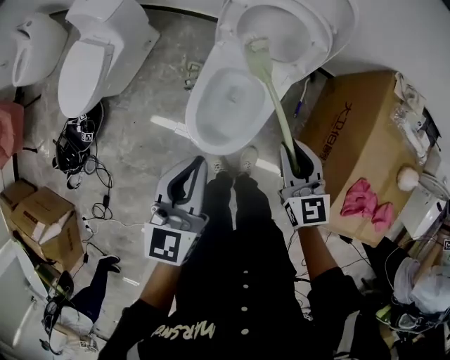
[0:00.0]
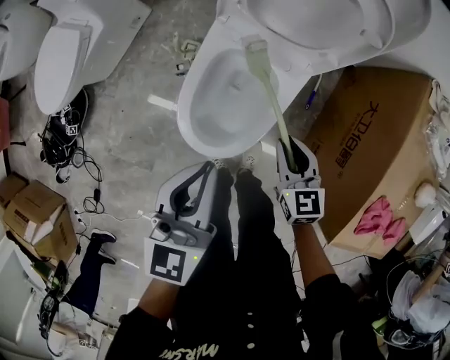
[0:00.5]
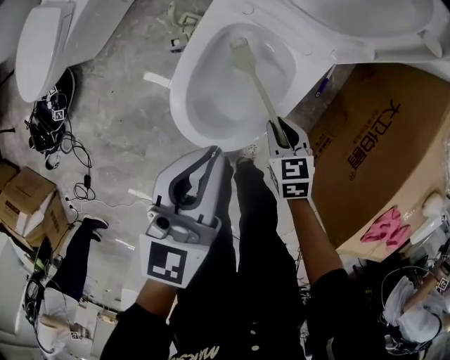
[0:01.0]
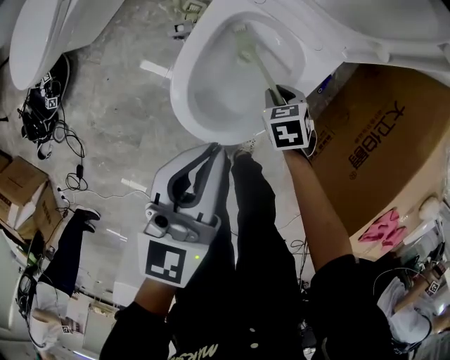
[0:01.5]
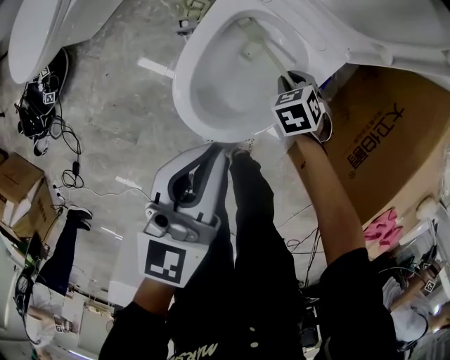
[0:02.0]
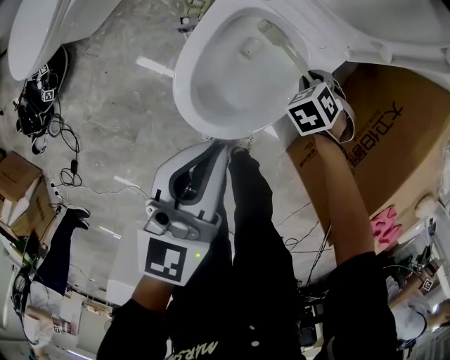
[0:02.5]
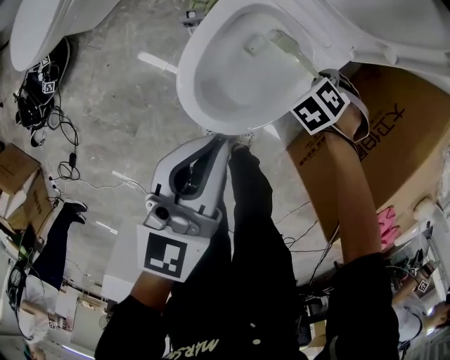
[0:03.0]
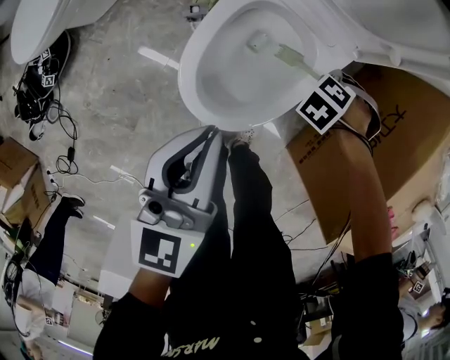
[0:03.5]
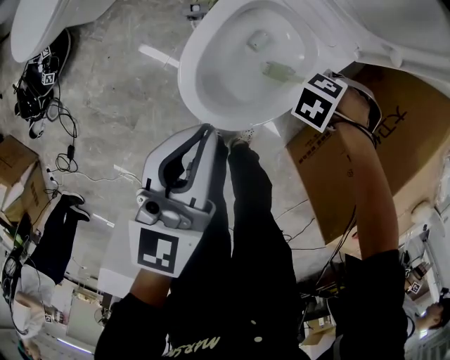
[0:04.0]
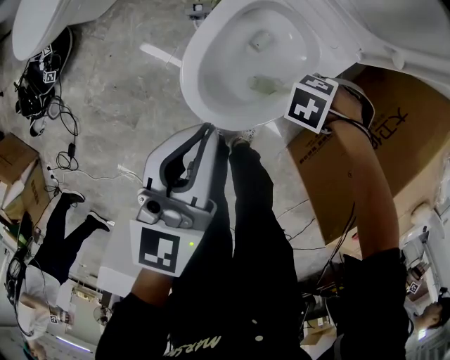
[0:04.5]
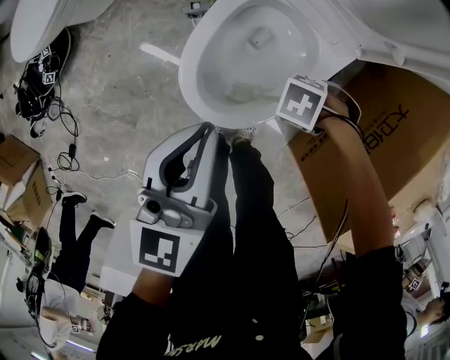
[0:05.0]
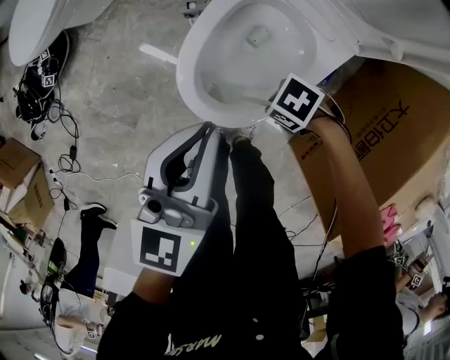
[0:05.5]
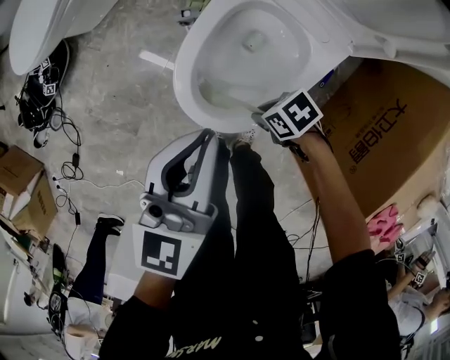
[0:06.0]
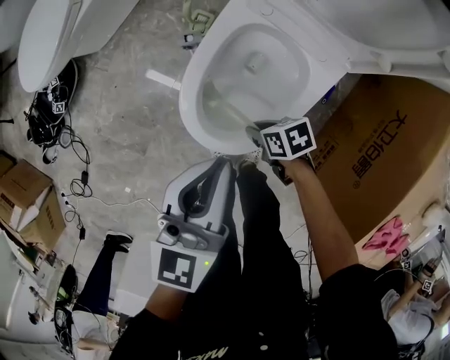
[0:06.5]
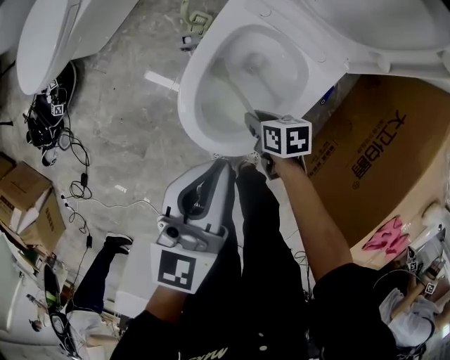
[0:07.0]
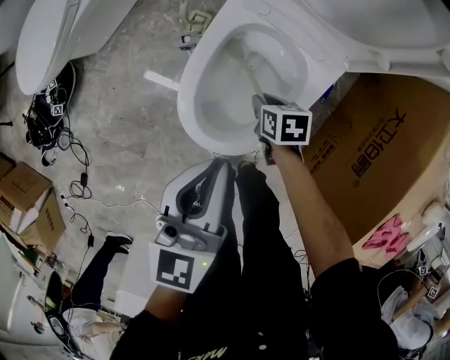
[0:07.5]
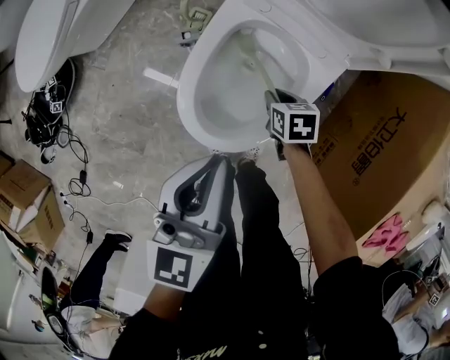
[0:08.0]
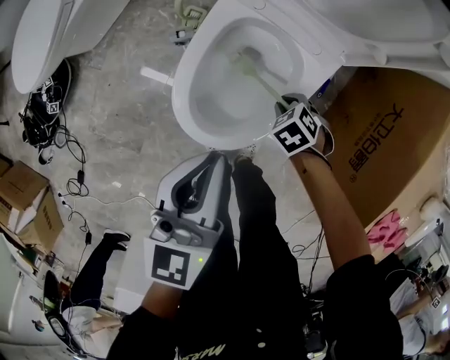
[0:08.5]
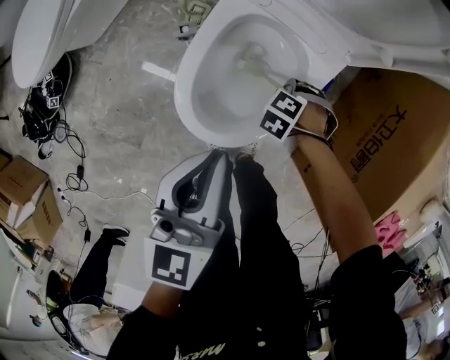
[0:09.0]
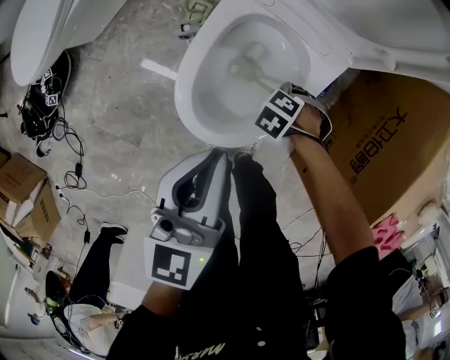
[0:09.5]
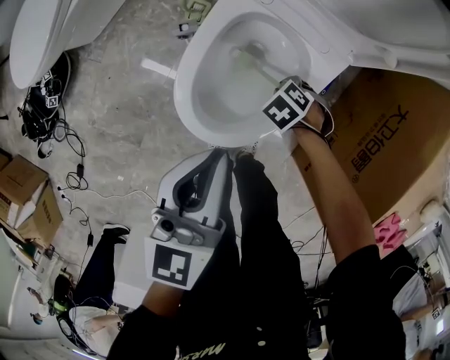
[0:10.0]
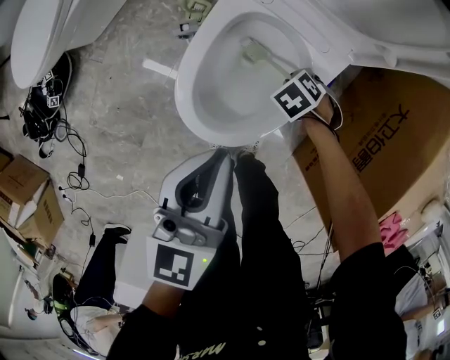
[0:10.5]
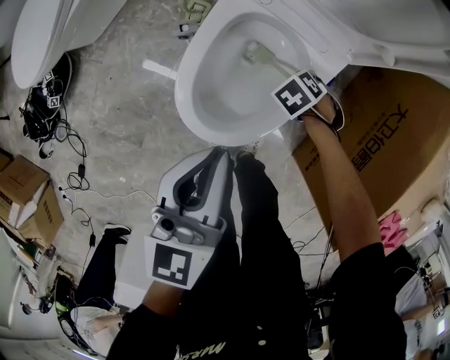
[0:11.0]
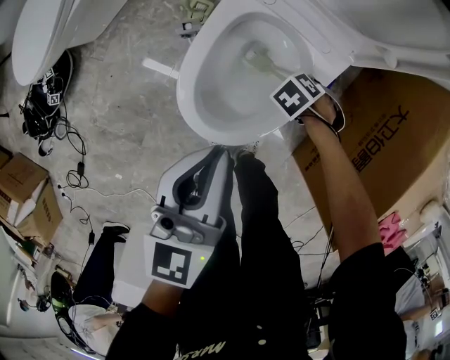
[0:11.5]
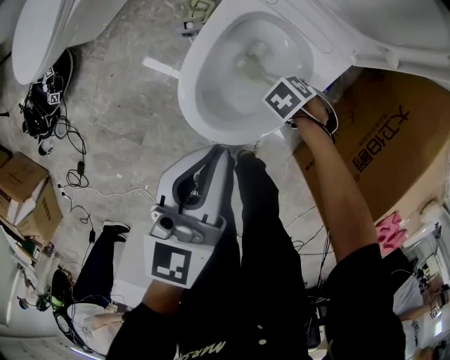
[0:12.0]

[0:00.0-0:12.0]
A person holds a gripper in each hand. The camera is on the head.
0:00.0 to 0:02.0: The left gripper goes some 25 cm downward. The right gripper heads downward, covering roughly 40 cm, and points its fingers about 50 degrees further downward.
0:02.0 to 0:04.0: The right gripper ends up about 10 cm from where it was, and rotates approximately 60 degrees.
0:04.0 to 0:06.0: The right gripper changes place by approximately 15 cm, and rotates roughly 60 degrees.
0:06.0 to 0:08.0: The right gripper shifts by about 10 cm, and swivels roughly 40 degrees.
0:08.0 to 0:10.0: The right gripper rolls counterclockwise, seen from behind, by about 50 degrees.
0:10.0 to 0:12.0: The grippers make only small movements.

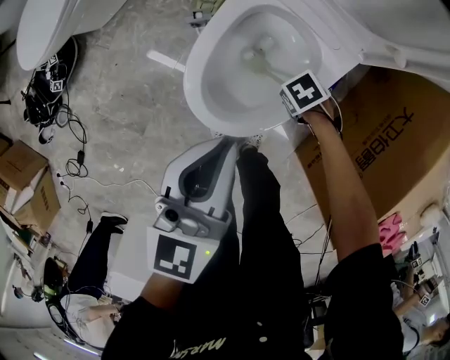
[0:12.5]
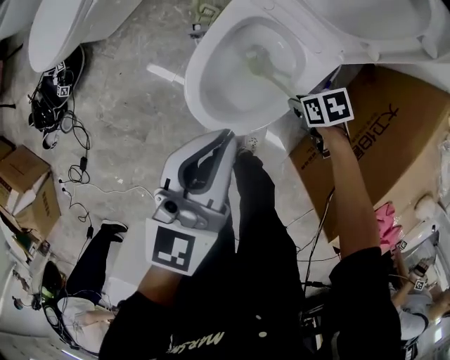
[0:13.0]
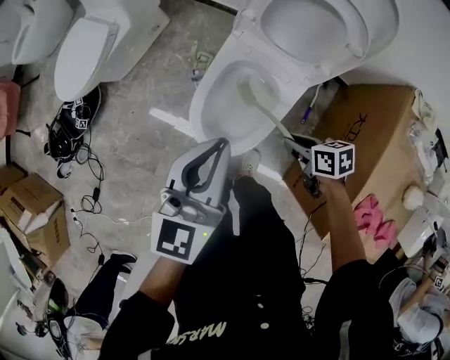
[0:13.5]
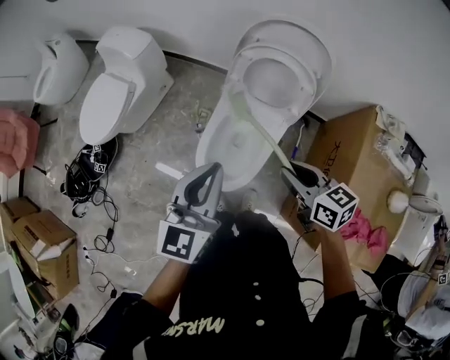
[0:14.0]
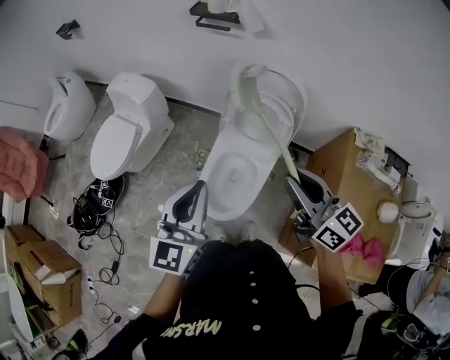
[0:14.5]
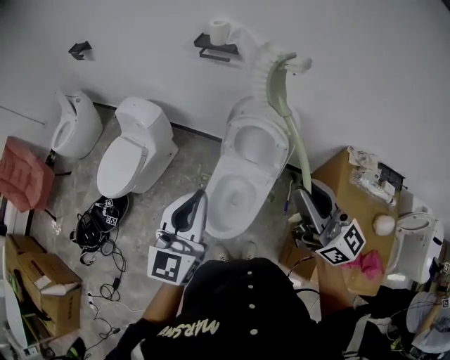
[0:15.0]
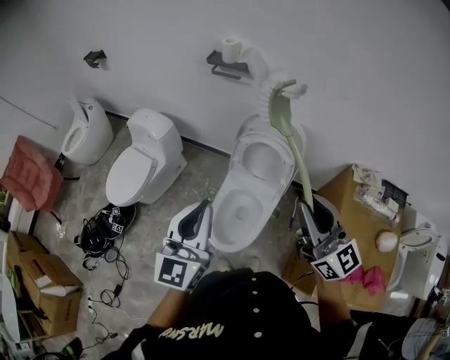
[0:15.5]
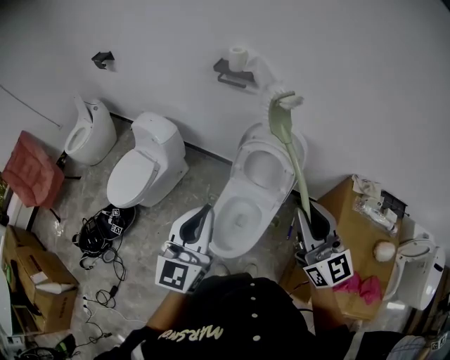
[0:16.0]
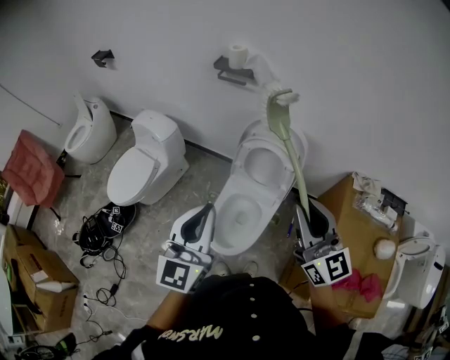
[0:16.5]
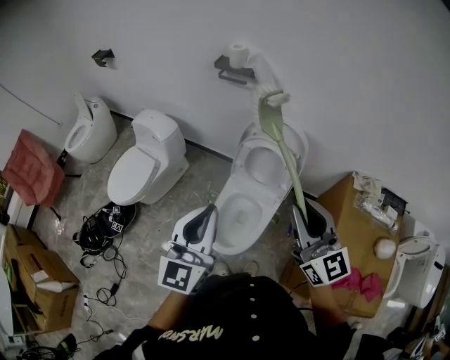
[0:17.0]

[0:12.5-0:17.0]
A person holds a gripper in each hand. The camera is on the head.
0:12.5 to 0:14.5: The left gripper moves upward, approximately 40 cm, and changes its angle by some 30 degrees, while the right gripper travels upward by about 70 cm, and points its fingers roughly 70 degrees further upward.
0:14.5 to 0:17.0: The grippers both shift upward by some 10 cm. The right gripper swivels approximately 30 degrees.

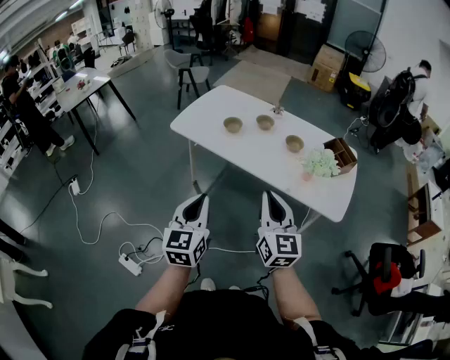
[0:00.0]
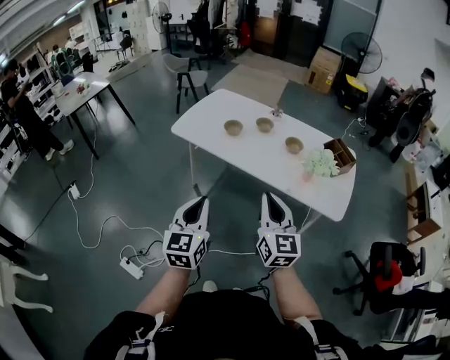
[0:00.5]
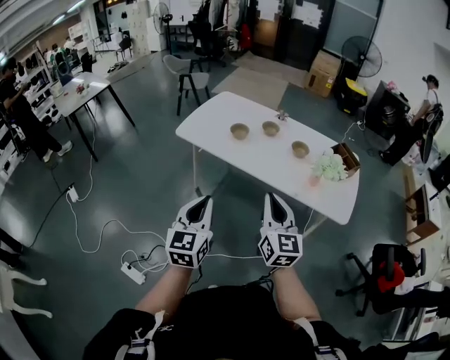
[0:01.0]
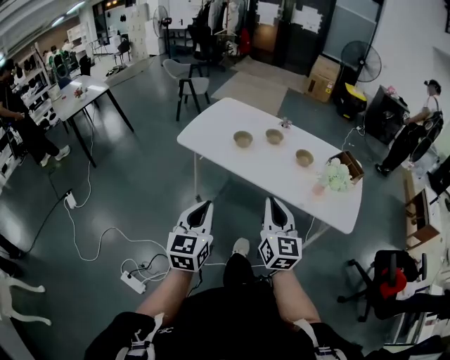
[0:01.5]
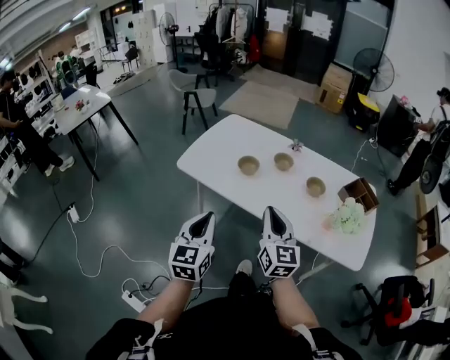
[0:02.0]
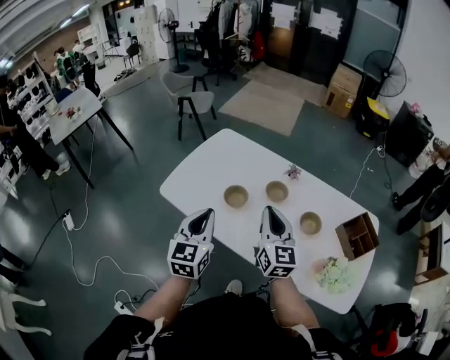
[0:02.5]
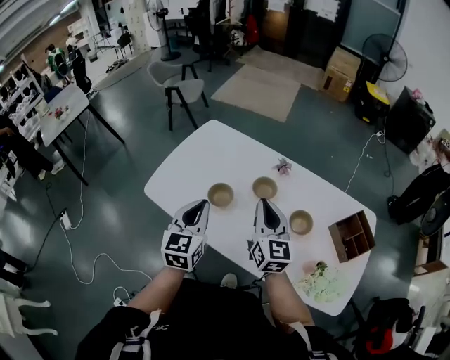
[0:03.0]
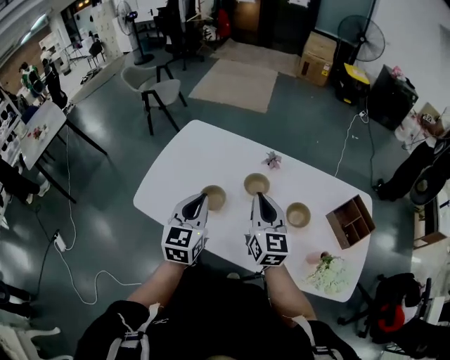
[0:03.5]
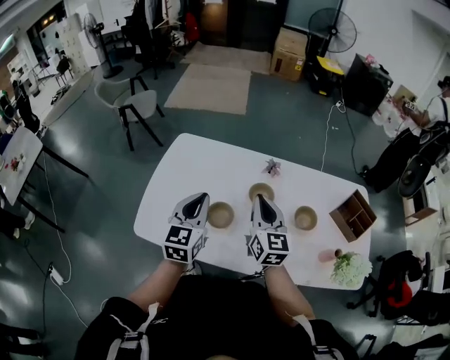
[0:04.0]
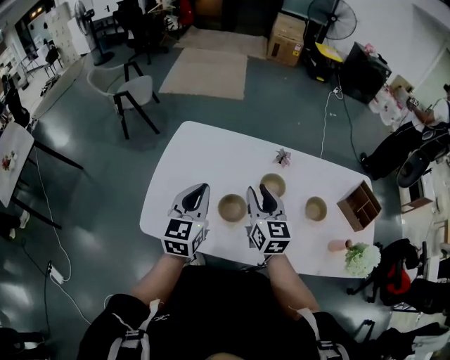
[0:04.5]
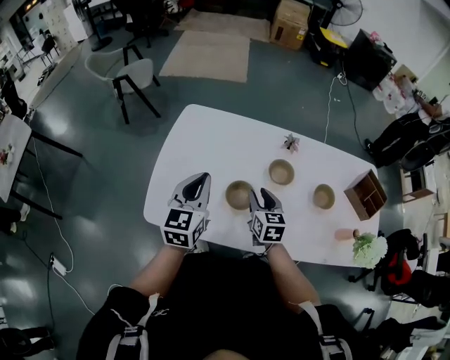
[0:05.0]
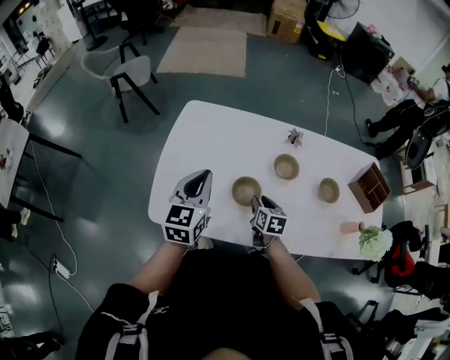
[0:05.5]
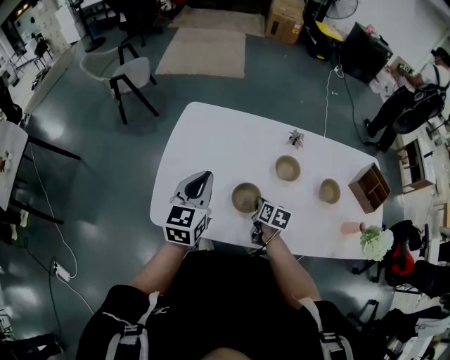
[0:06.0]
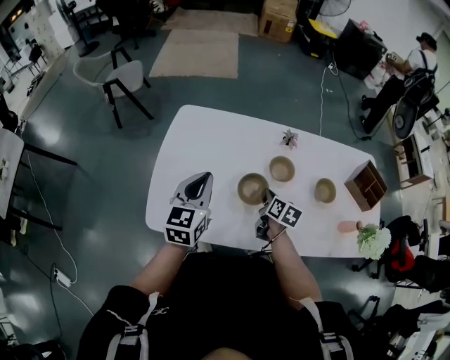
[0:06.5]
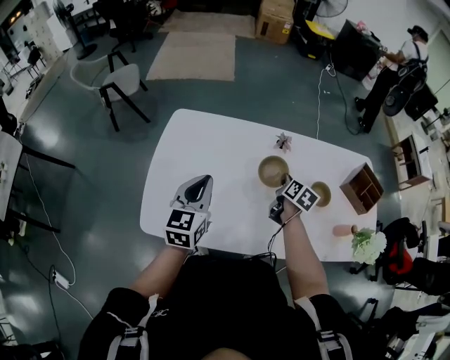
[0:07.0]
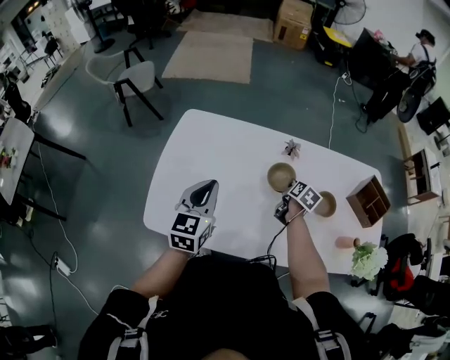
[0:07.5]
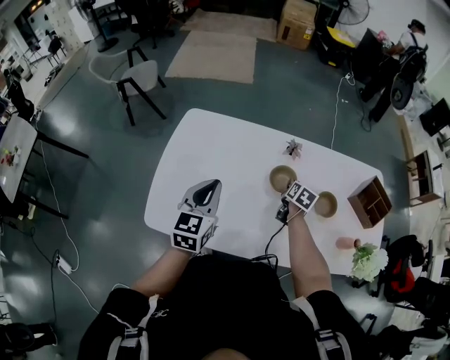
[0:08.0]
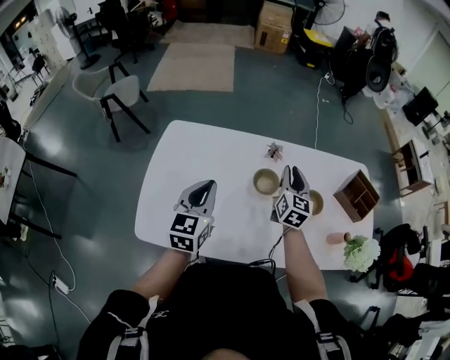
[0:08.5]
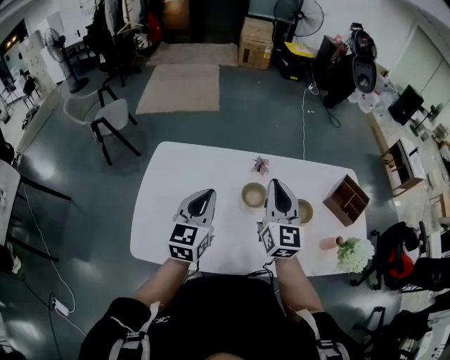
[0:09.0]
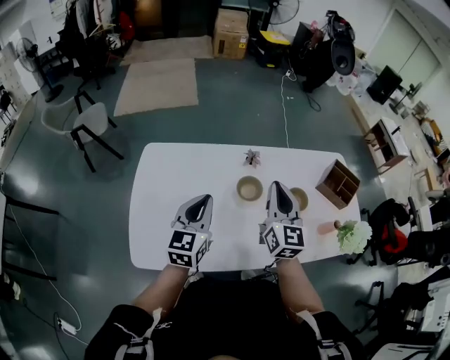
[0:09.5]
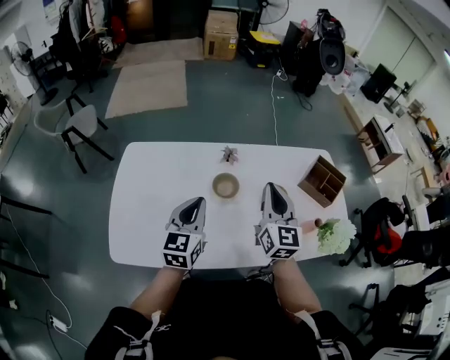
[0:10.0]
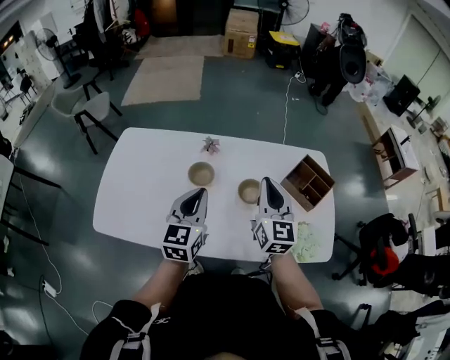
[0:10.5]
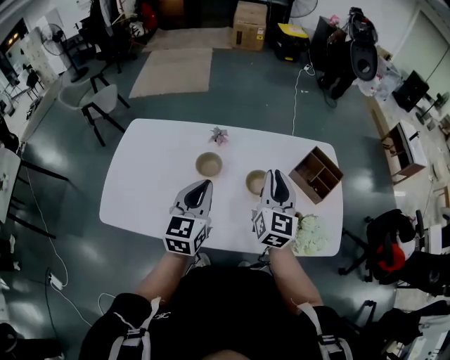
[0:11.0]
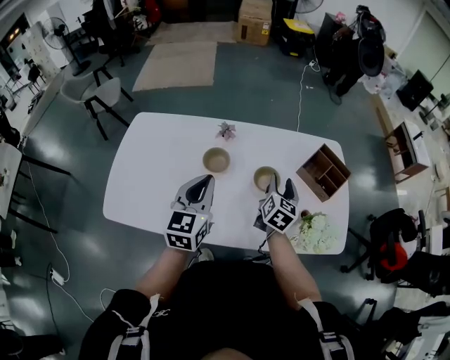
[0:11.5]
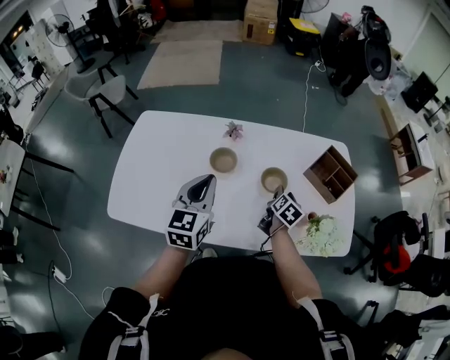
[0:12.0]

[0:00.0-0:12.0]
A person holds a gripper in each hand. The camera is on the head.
0:00.0 to 0:02.0: The left gripper shifts roughly 25 cm forward and to the left; the right gripper is displaced forward by roughly 25 cm.
0:02.0 to 0:04.0: Both grippers are carried forward, some 50 cm.
0:04.0 to 0:06.0: The right gripper moves downward, approximately 30 cm, tips its fingers downward by some 40 degrees, and opens and closes again. Meanwhile the left gripper moves to the left and downward, roughly 15 cm.
0:06.0 to 0:08.0: The right gripper travels forward and to the right by about 20 cm. Meanwhile the left gripper goes about 5 cm to the right.
0:08.0 to 0:10.0: The right gripper is displaced upward and backward by approximately 30 cm, tips its fingers upward by some 40 degrees, and closes its fingers; the left gripper travels to the right by about 15 cm.
0:10.0 to 0:12.0: The right gripper travels downward and to the right by roughly 35 cm, tips its fingers downward by some 40 degrees, and opens its fingers. The left gripper moves to the right, about 15 cm.
